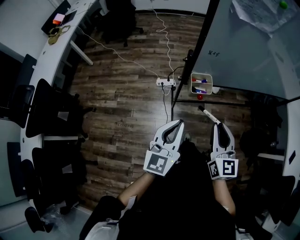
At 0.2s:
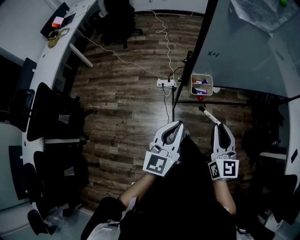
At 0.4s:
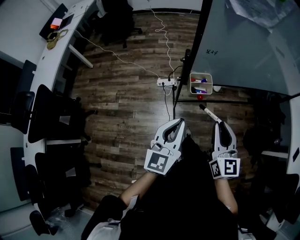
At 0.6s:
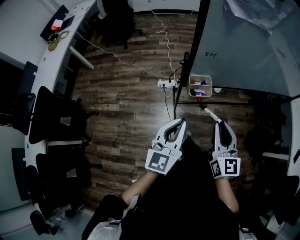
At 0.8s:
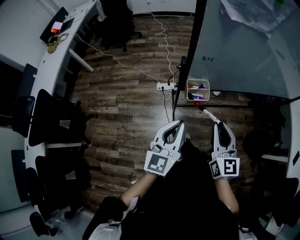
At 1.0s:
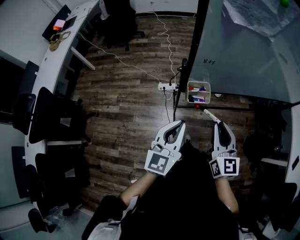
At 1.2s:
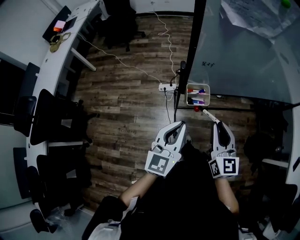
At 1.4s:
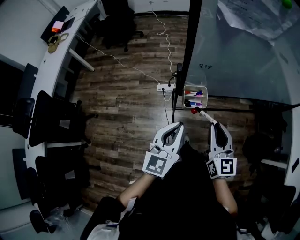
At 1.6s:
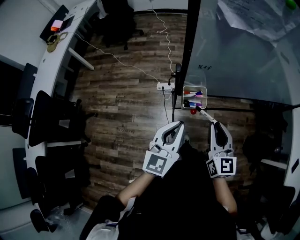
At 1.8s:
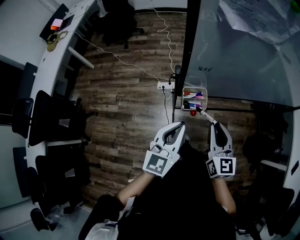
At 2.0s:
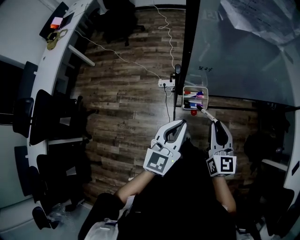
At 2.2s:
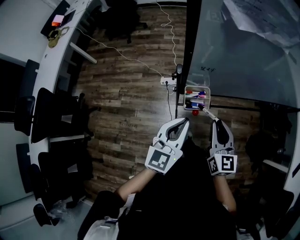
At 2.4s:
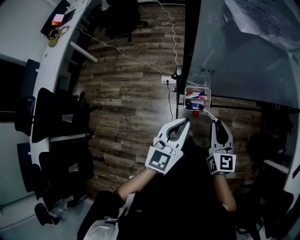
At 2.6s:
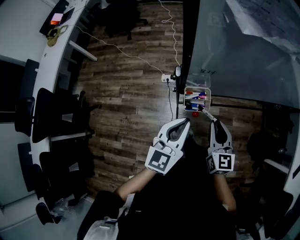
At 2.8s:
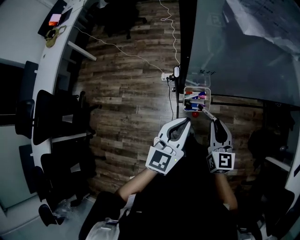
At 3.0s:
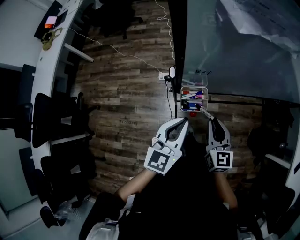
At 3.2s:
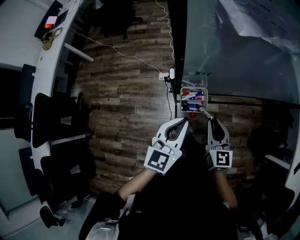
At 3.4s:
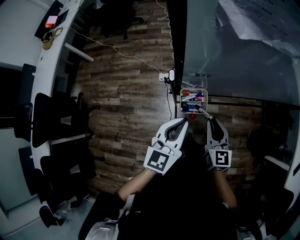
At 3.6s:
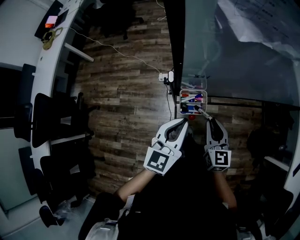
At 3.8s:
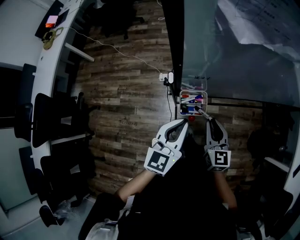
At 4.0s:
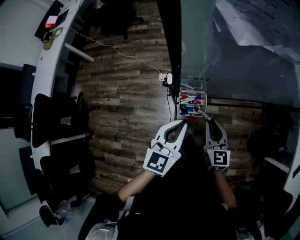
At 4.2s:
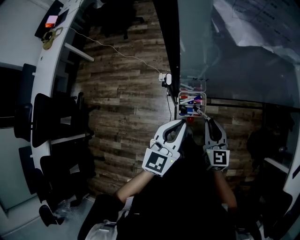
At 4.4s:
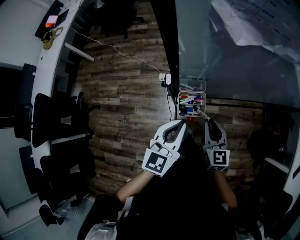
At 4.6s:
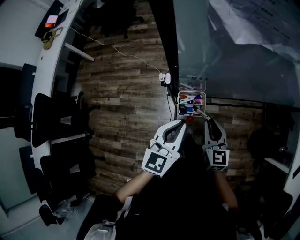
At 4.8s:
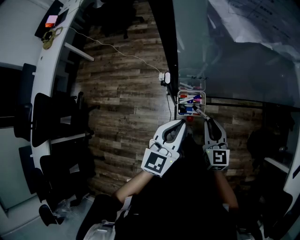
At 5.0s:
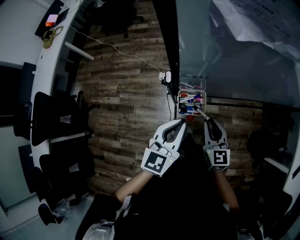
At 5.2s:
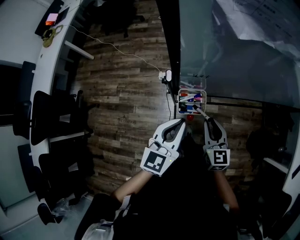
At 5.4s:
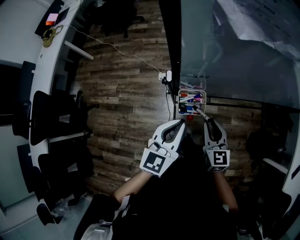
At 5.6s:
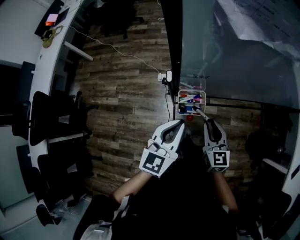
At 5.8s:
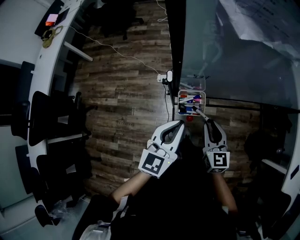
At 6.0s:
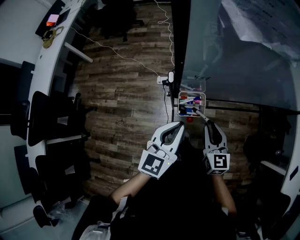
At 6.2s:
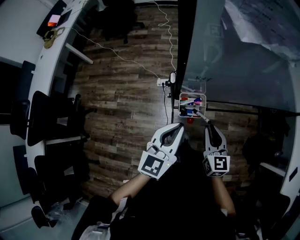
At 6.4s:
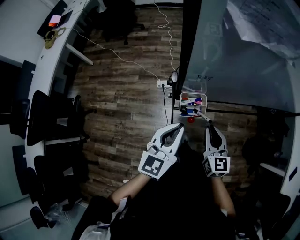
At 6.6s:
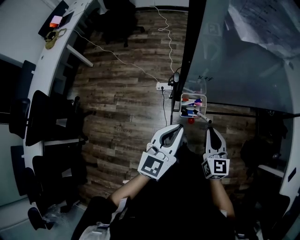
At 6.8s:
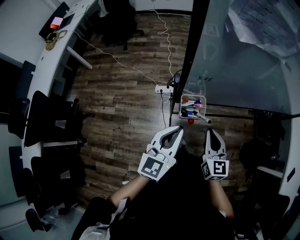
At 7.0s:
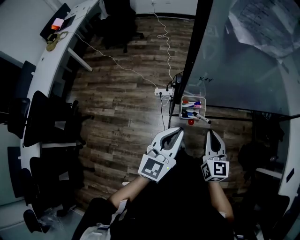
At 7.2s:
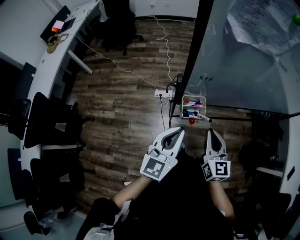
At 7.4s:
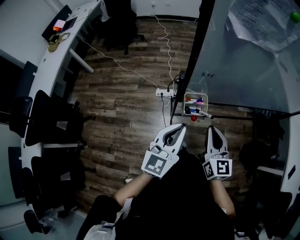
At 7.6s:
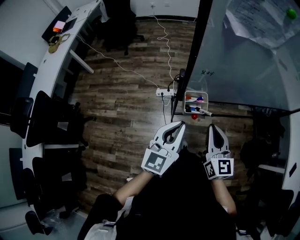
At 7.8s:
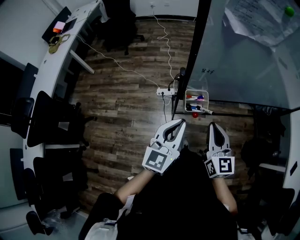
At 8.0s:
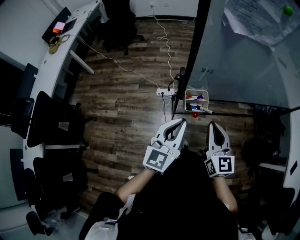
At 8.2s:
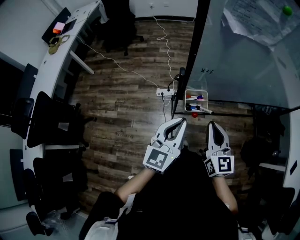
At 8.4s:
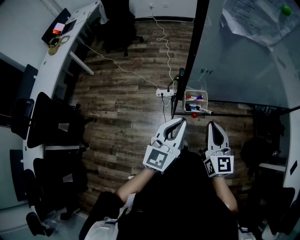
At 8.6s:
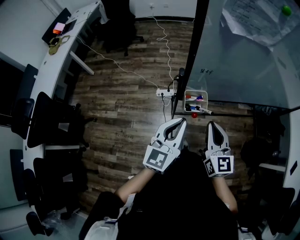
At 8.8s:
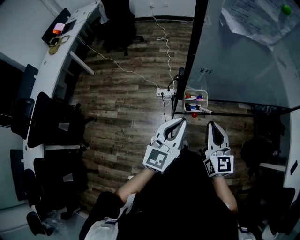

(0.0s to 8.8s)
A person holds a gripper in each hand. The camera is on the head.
0.0s - 1.4s: Both grippers move forward, about 10 cm.
1.4s - 3.0s: The right gripper shifts about 10 cm downward and forward; the left gripper shifts roughly 5 cm forward.
3.0s - 4.4s: The grippers move only a little.
4.4s - 5.8s: Neither gripper changes place.
5.8s - 7.4s: The right gripper heads upward, covering roughly 10 cm, while the left gripper changes place by roughly 5 cm.
7.4s - 8.8s: There are only small adjustments of the grippers.

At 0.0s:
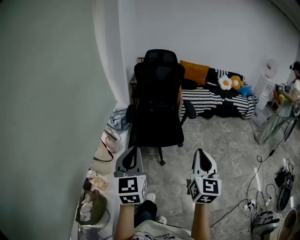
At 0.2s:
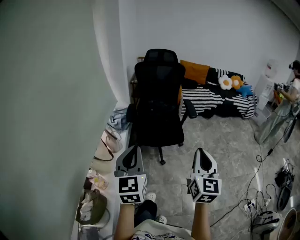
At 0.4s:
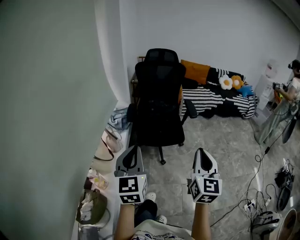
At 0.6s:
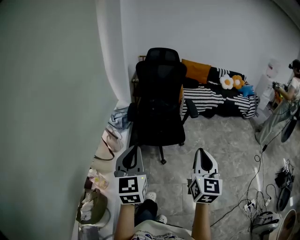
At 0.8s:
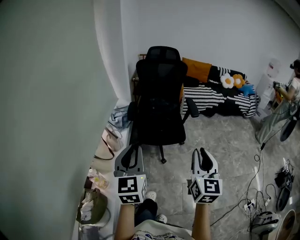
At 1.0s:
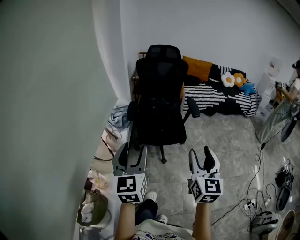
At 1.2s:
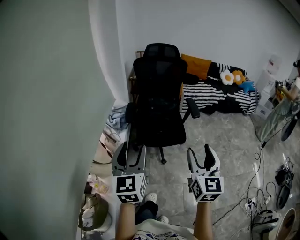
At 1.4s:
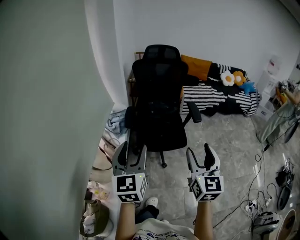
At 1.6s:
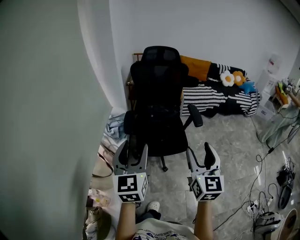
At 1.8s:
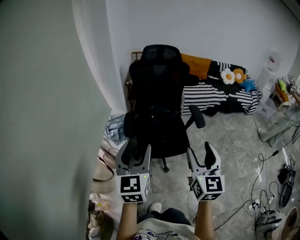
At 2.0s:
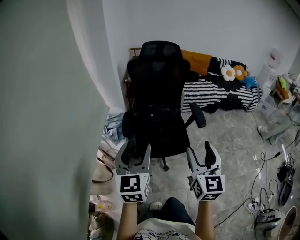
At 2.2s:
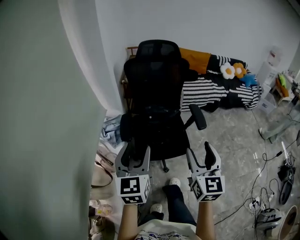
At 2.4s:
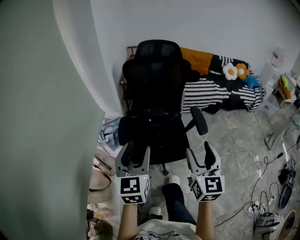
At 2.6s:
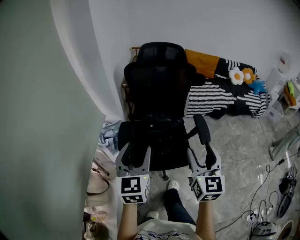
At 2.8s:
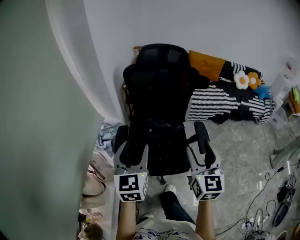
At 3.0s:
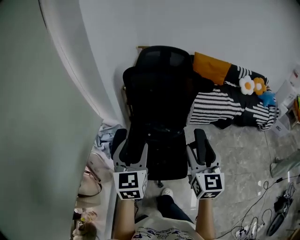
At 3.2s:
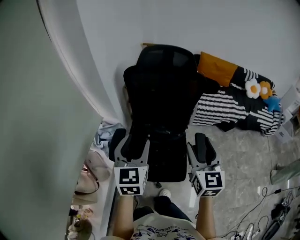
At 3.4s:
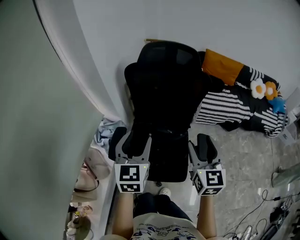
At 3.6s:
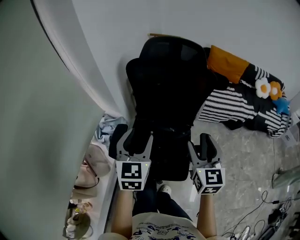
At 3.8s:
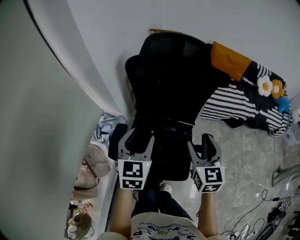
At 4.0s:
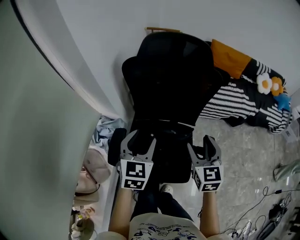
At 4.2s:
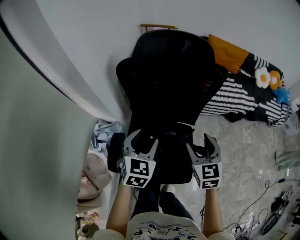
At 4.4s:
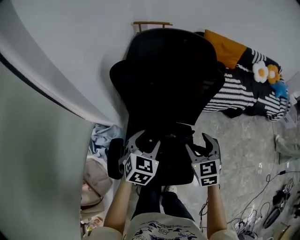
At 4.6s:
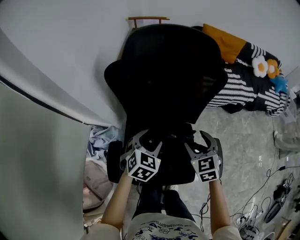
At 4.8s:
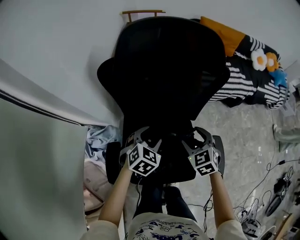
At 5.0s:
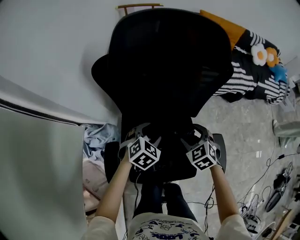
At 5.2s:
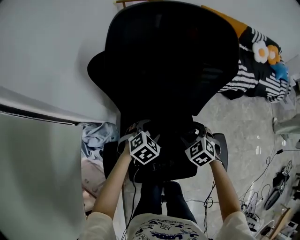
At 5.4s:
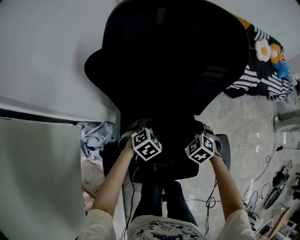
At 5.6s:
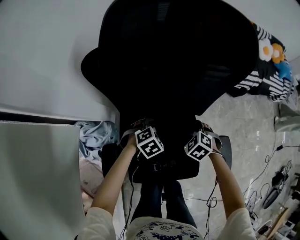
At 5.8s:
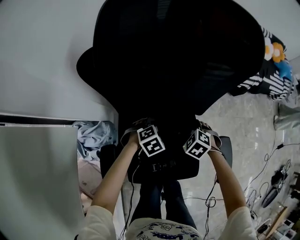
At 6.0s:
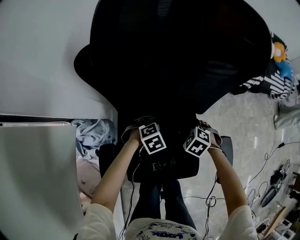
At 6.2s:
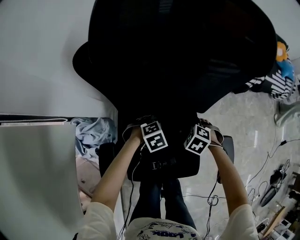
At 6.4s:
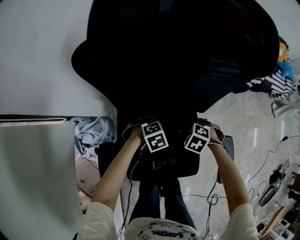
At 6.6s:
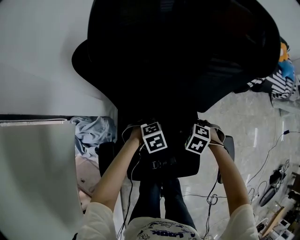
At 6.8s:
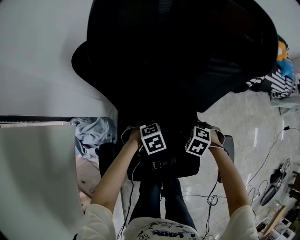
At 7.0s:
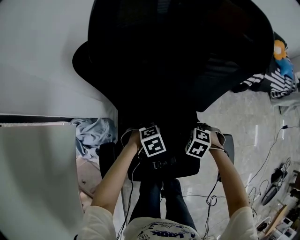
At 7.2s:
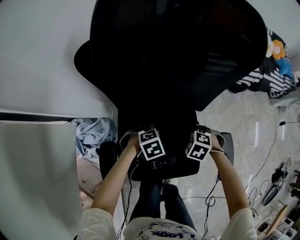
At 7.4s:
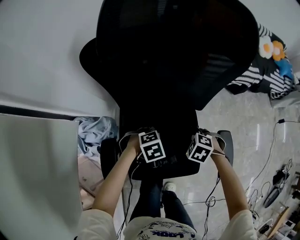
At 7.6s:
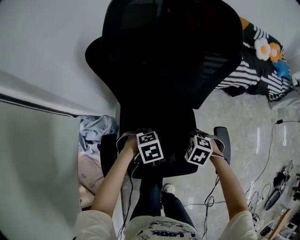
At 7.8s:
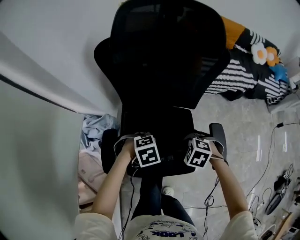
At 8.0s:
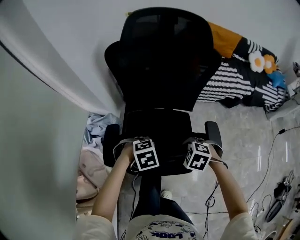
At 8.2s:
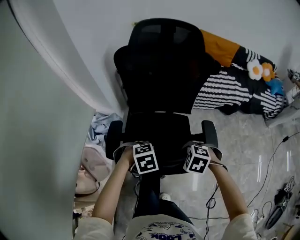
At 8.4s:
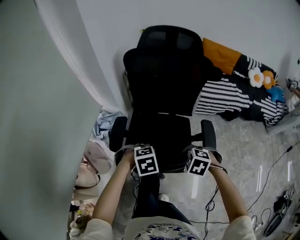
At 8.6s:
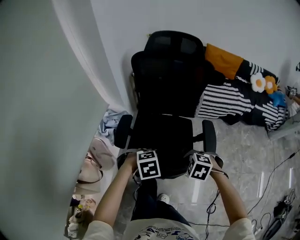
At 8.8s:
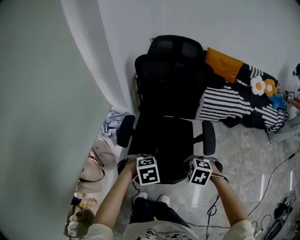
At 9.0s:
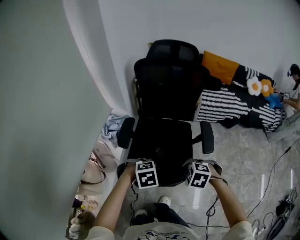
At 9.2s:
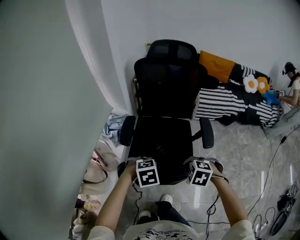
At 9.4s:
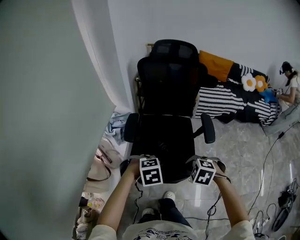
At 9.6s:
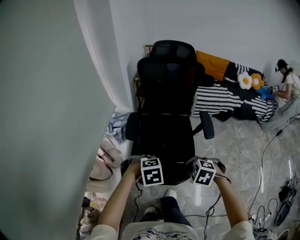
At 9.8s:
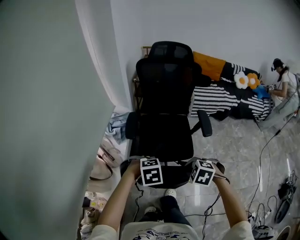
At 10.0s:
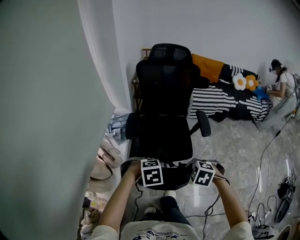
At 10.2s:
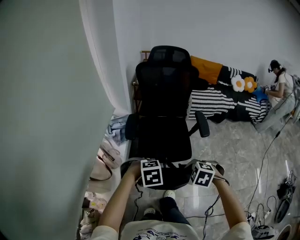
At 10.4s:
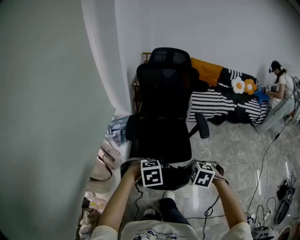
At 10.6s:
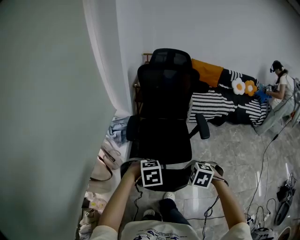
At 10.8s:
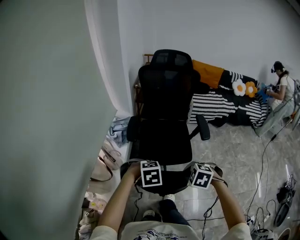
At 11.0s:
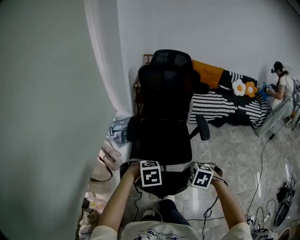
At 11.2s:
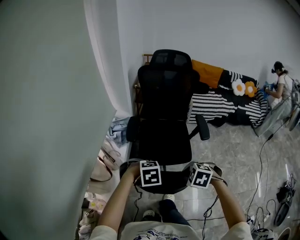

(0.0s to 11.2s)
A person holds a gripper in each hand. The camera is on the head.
0.0s - 1.6s: The two grippers go approximately 20 cm forward. The right gripper opens its fingers. The left gripper opens its fingers.
1.6s - 3.2s: Both grippers are carried forward, roughly 40 cm.
3.2s - 4.8s: The grippers both shift downward and forward by roughly 35 cm. The left gripper angles its fingers downward, by some 30 degrees. The right gripper tips its fingers downward by approximately 40 degrees.
4.8s - 6.4s: Both grippers move downward, about 20 cm. The right gripper points its fingers some 40 degrees further downward, and closes. Meanwhile the left gripper rotates about 40 degrees, and closes.
6.4s - 8.0s: The left gripper ends up roughly 30 cm from where it was, while the right gripper changes place by roughly 25 cm.
8.0s - 9.6s: The left gripper changes place by about 40 cm; the right gripper changes place by some 40 cm.
9.6s - 11.2s: The left gripper moves some 5 cm; the right gripper changes place by about 5 cm.

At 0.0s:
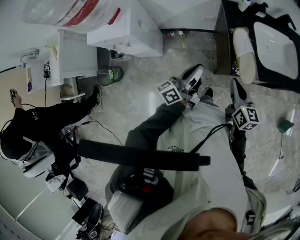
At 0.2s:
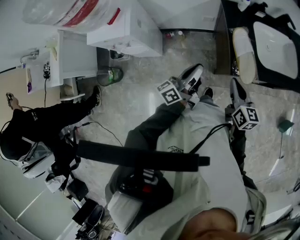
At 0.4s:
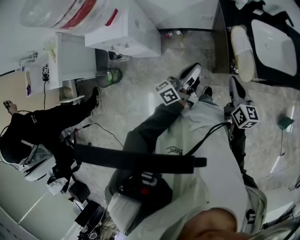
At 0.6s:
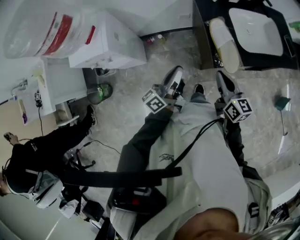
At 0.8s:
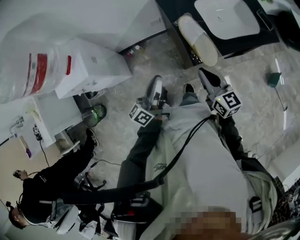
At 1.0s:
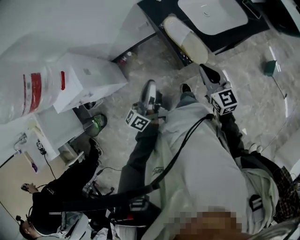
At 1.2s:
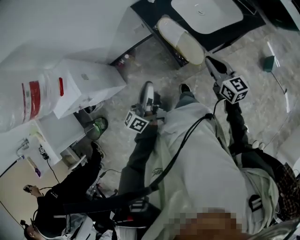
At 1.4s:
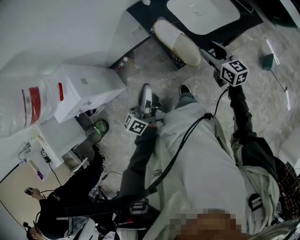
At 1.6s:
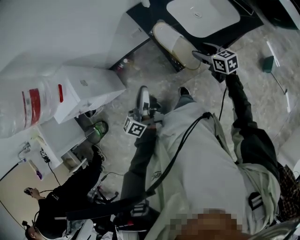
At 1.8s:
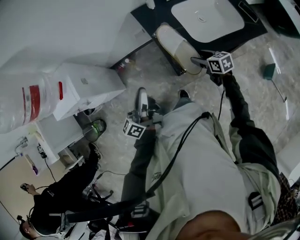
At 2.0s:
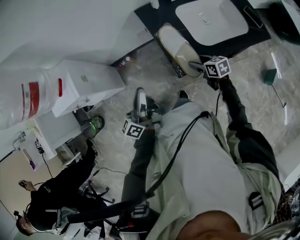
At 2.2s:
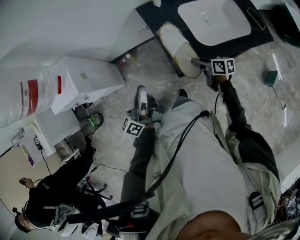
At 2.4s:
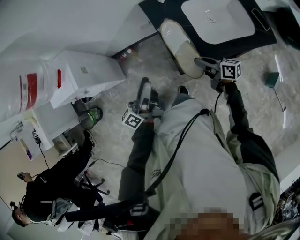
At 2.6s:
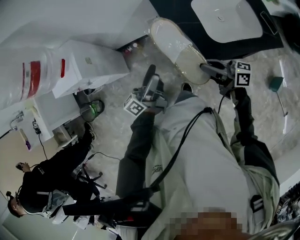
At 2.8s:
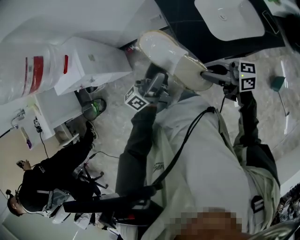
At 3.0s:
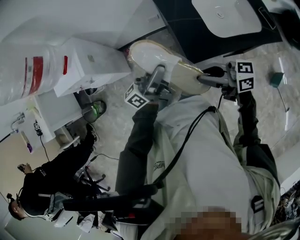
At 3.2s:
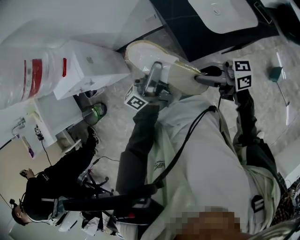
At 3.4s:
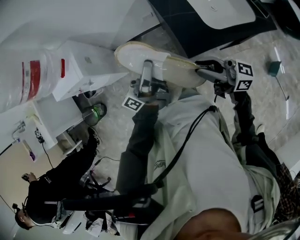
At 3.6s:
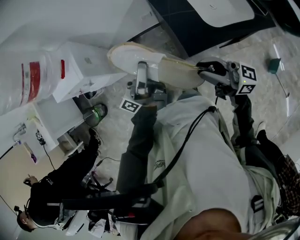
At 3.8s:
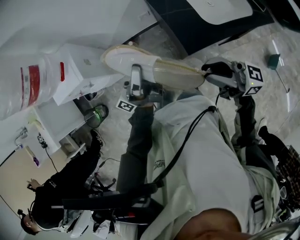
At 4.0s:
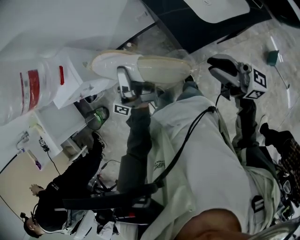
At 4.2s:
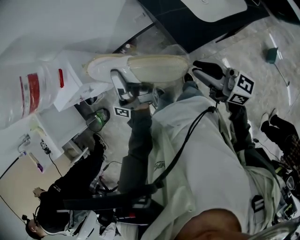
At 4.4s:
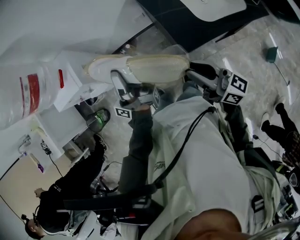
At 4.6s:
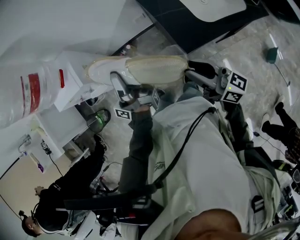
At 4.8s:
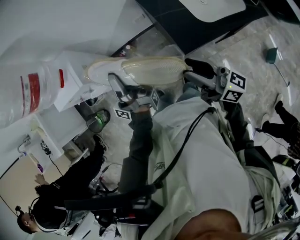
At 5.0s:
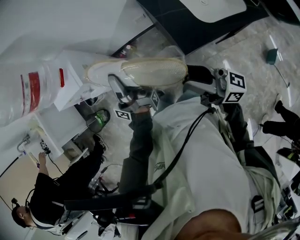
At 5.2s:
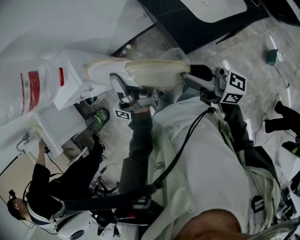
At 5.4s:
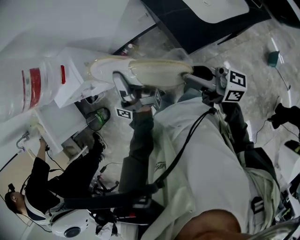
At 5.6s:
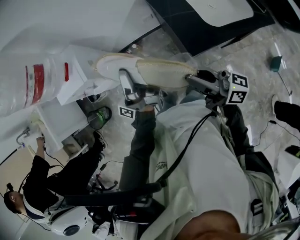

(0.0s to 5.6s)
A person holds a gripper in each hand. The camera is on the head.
0.0s - 1.4s: The right gripper shifts by roughly 15 cm, and opens up.
1.4s - 2.8s: The right gripper goes downward and returns, roughly 15 cm each way, turns by roughly 60 degrees, and closes its fingers.
2.8s - 4.2s: The right gripper is displaced upward by roughly 5 cm, and swivels roughly 30 degrees.
4.2s - 5.6s: The right gripper rotates about 20 degrees, and opens, then closes again.
